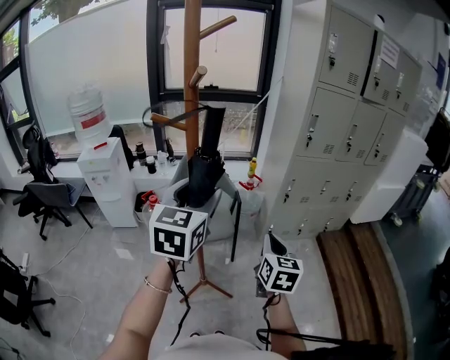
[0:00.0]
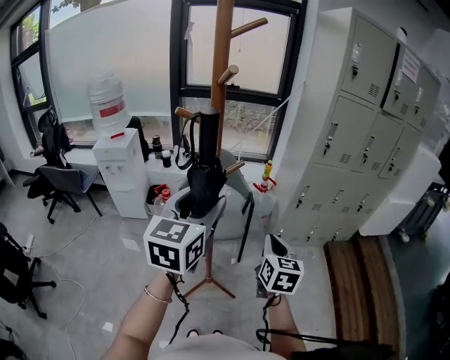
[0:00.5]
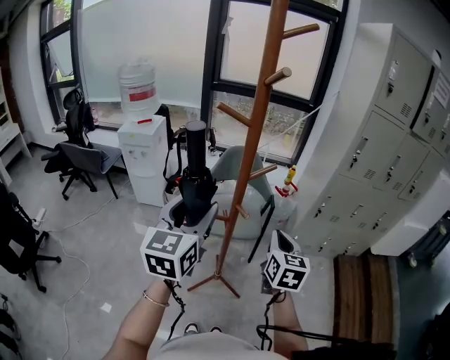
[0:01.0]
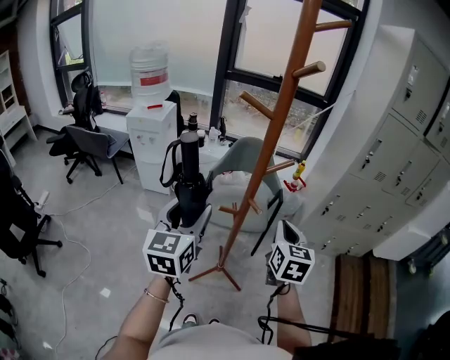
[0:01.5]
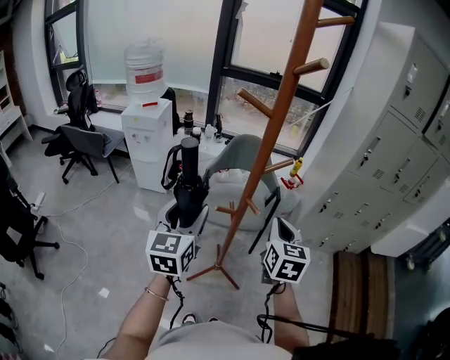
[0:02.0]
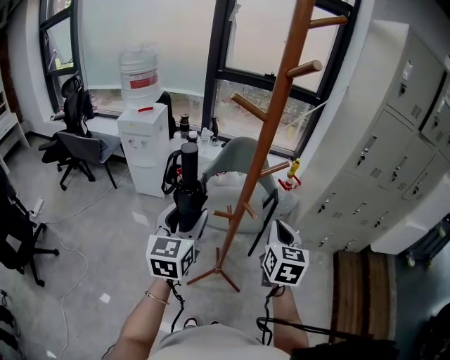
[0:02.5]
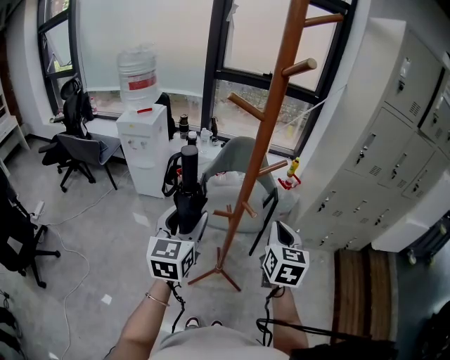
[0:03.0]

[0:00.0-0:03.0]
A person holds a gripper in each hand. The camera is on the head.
0:00.0 to 0:01.5: The left gripper travels to the left and downward by approximately 20 cm, and turns by some 20 degrees; the right gripper heads to the left and forward, covering some 10 cm.
0:01.5 to 0:03.0: The grippers make only small movements.

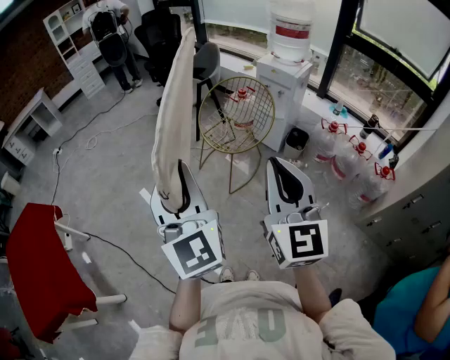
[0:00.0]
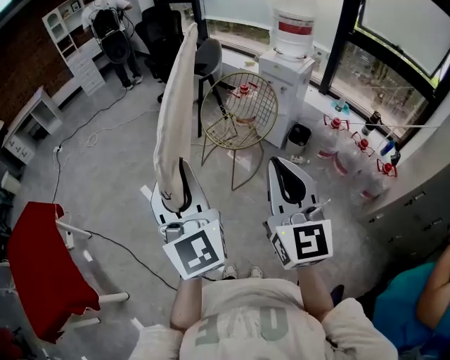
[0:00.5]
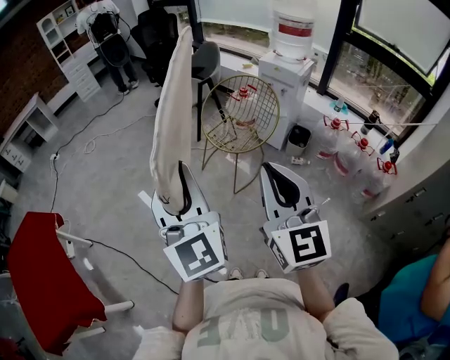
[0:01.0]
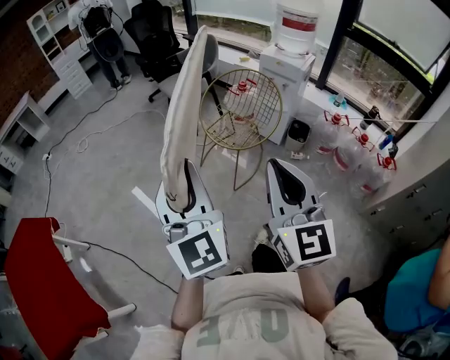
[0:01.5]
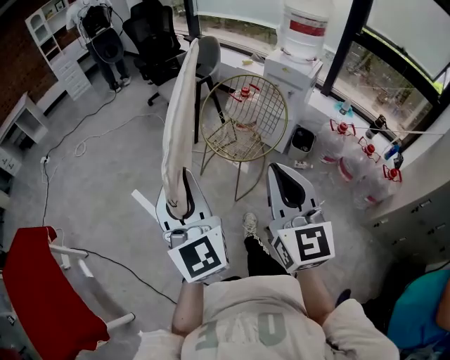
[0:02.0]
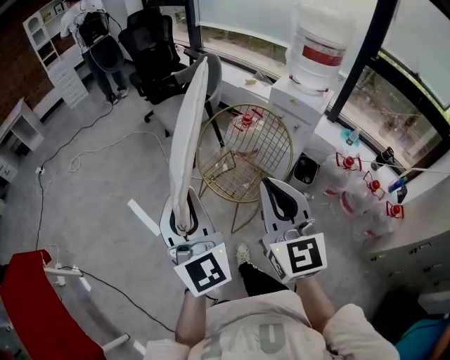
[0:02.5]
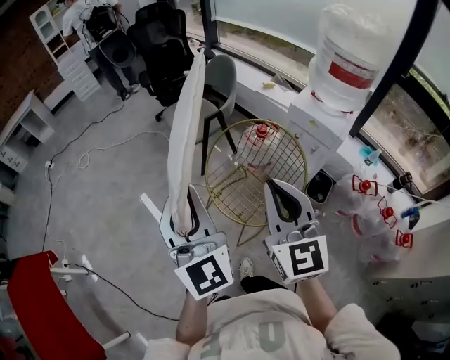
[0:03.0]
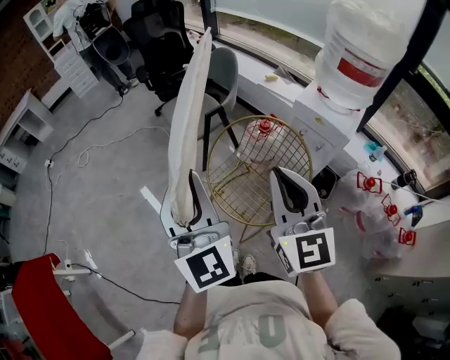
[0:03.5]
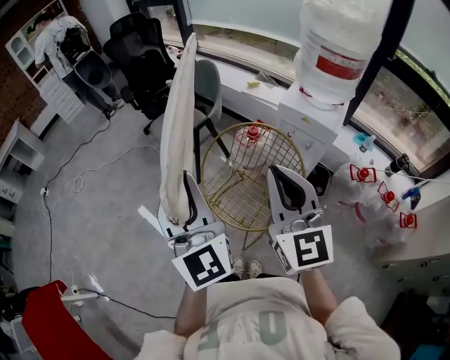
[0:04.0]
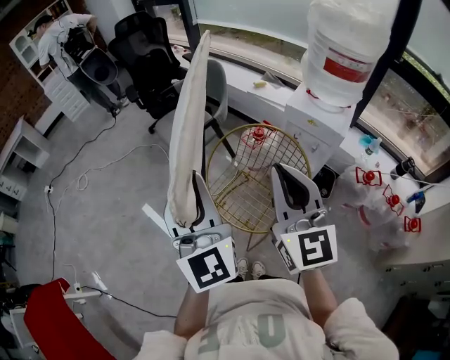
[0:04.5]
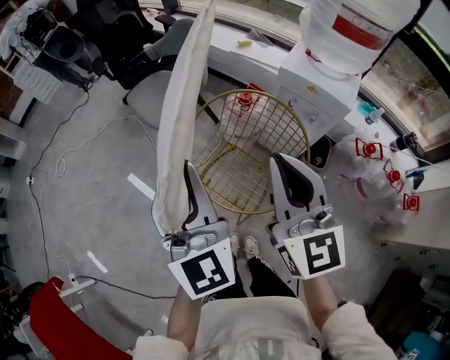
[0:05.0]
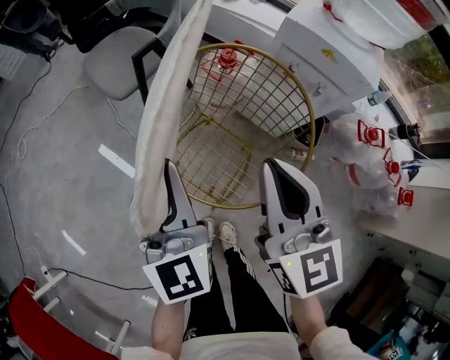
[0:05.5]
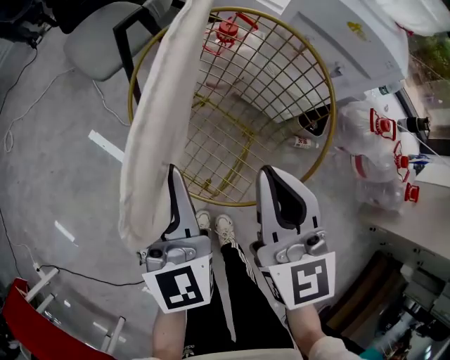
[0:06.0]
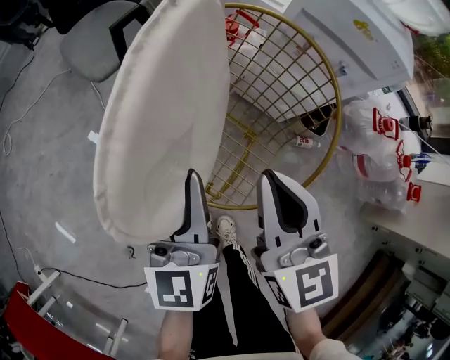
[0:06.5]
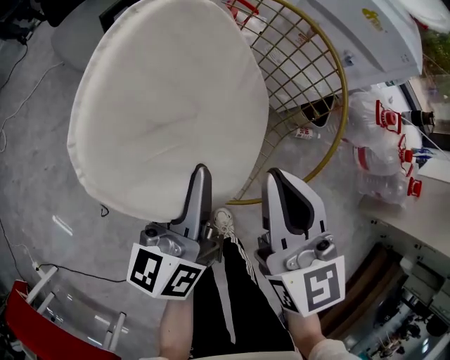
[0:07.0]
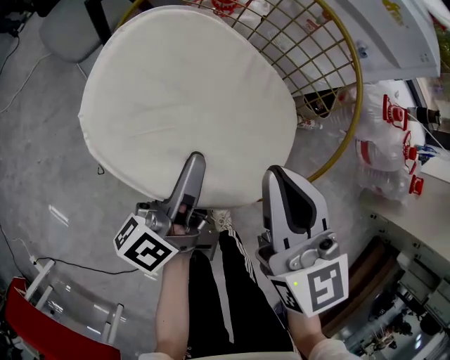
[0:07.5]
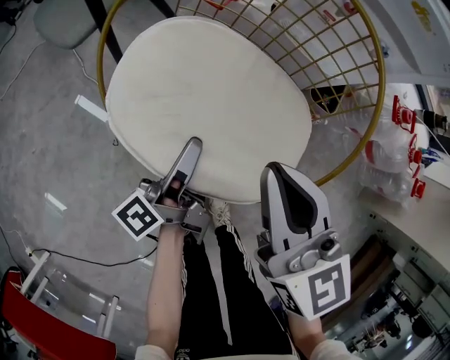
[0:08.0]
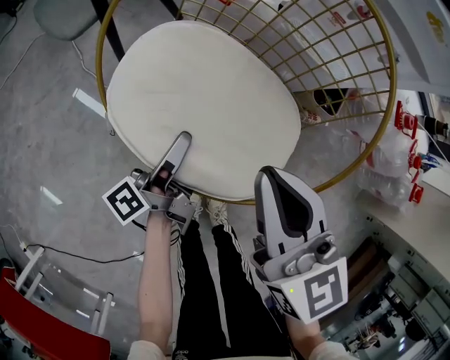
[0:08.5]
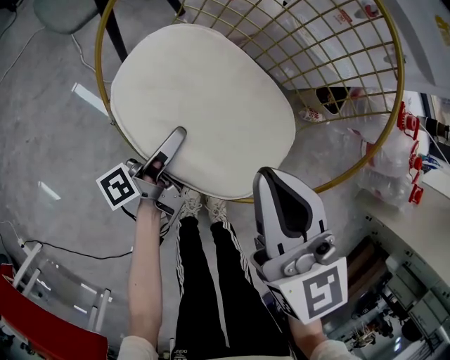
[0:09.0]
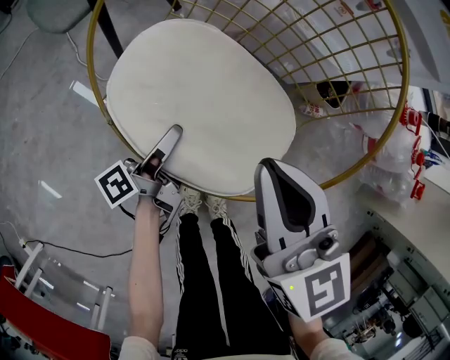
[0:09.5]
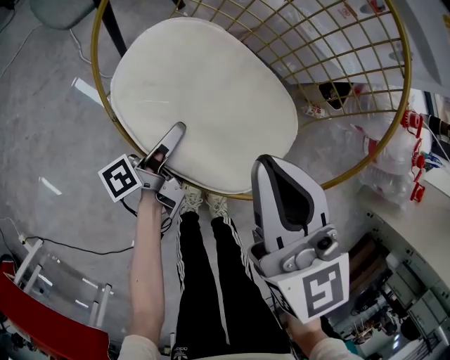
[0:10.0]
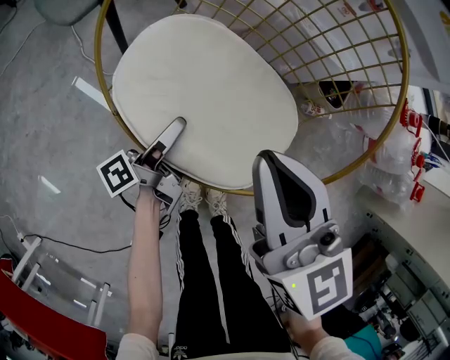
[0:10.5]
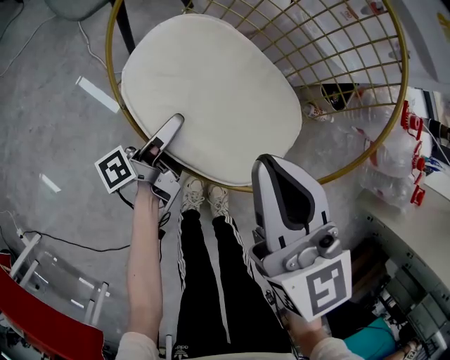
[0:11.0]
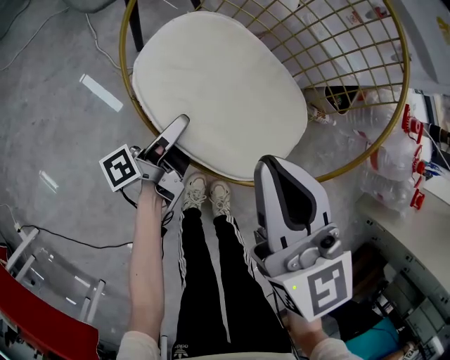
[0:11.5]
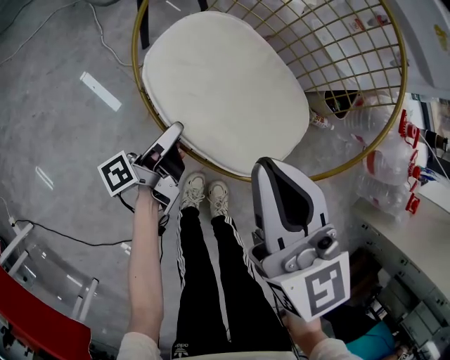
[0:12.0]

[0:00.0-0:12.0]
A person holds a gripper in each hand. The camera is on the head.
0:00.0 to 0:02.0: The right gripper travels forward by some 15 cm. The left gripper heads forward and downward, covering approximately 15 cm.
0:02.0 to 0:04.0: The right gripper goes about 35 cm forward, while the left gripper moves forward and to the right, some 35 cm.
0:04.0 to 0:06.0: The two grippers go about 35 cm downward. The right gripper turns by about 20 degrees. The left gripper swivels roughly 30 degrees.
0:06.0 to 0:08.0: The right gripper travels downward by approximately 10 cm; the left gripper travels downward by roughly 20 cm, and rotates around the line of its fingers by roughly 80 degrees, counterclockwise from behind.
0:08.0 to 0:10.0: The left gripper is displaced downward by roughly 10 cm.
0:10.0 to 0:12.0: The left gripper is displaced backward and to the left by some 10 cm, and opens its fingers. The right gripper is displaced backward by approximately 5 cm.

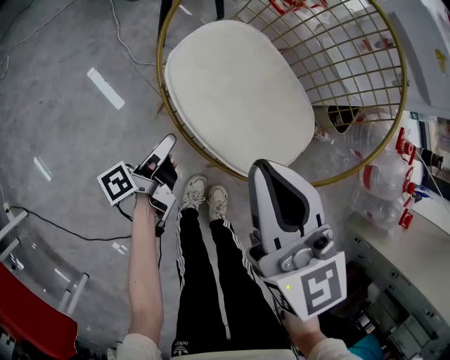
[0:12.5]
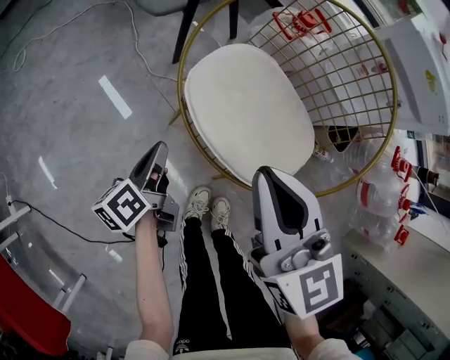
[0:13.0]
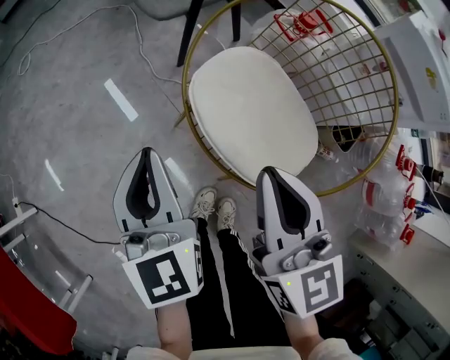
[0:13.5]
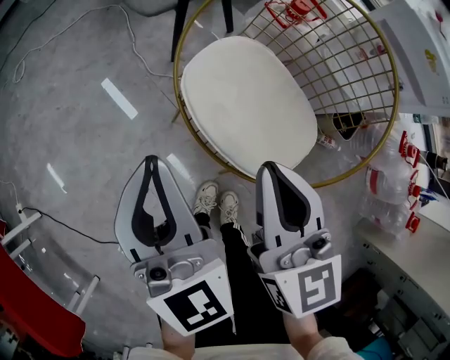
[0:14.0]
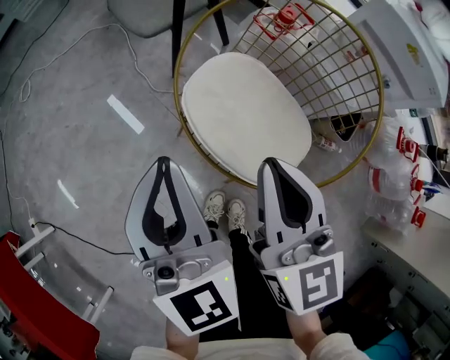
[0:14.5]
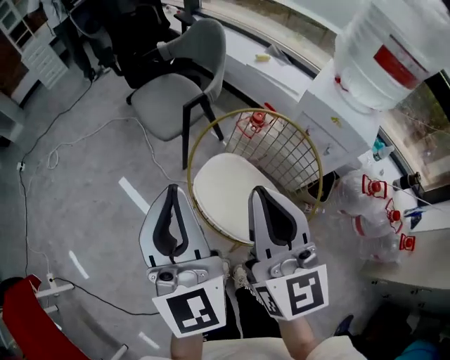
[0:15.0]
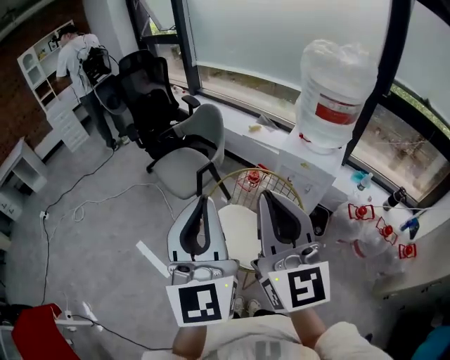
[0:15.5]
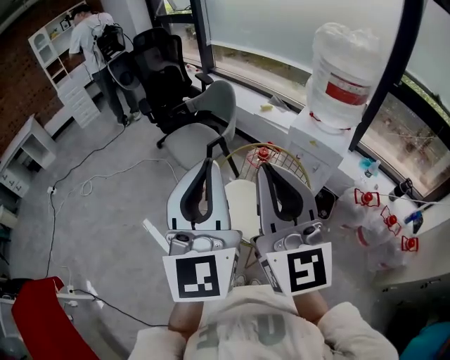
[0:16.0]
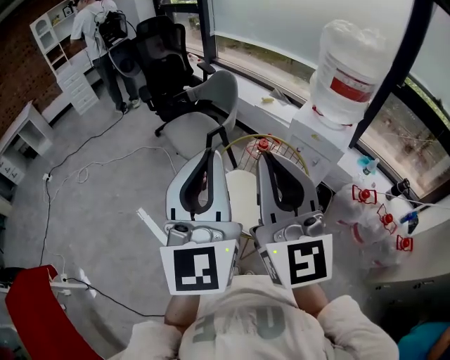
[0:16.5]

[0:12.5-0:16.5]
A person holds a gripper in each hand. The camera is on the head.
0:12.5 to 0:14.5: The right gripper heads upward, covering roughly 5 cm; the left gripper is displaced upward by approximately 35 cm, twists roughly 100 degrees clockwise, seen from behind, and closes its fingers.
0:14.5 to 0:16.5: The grippers both shift upward by approximately 40 cm. The left gripper rotates some 30 degrees. Meanwhile the right gripper tips its fingers upward by some 30 degrees.

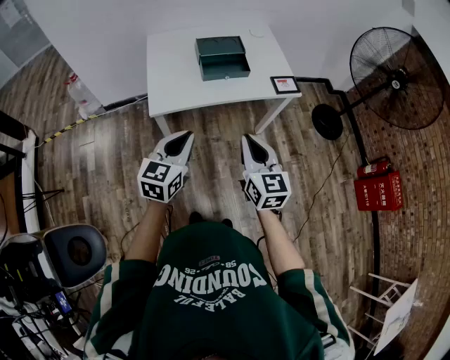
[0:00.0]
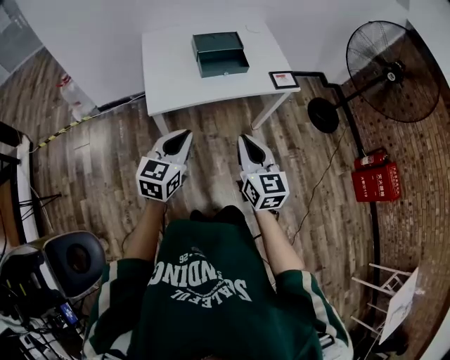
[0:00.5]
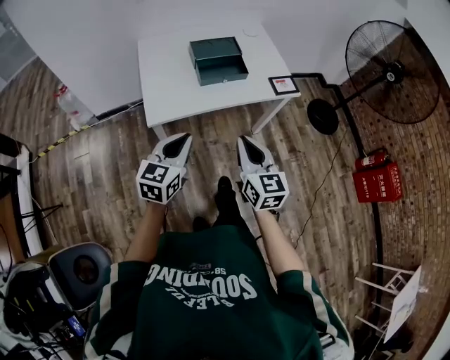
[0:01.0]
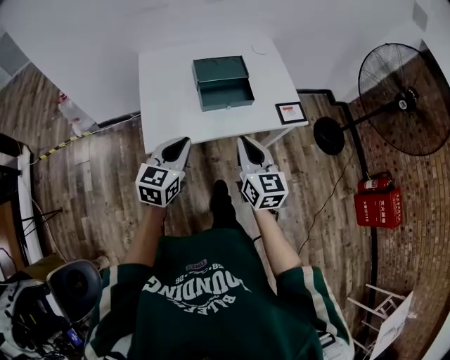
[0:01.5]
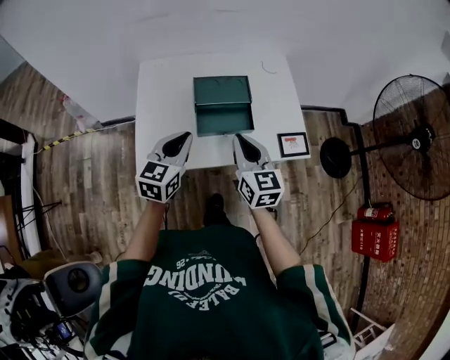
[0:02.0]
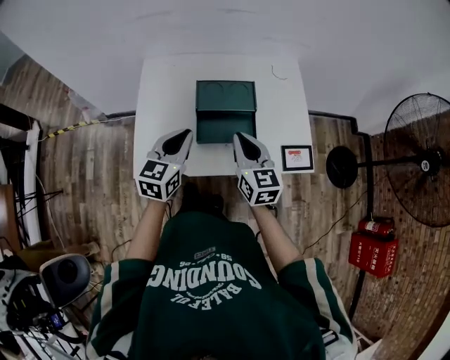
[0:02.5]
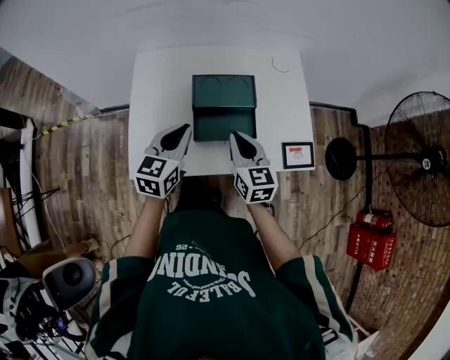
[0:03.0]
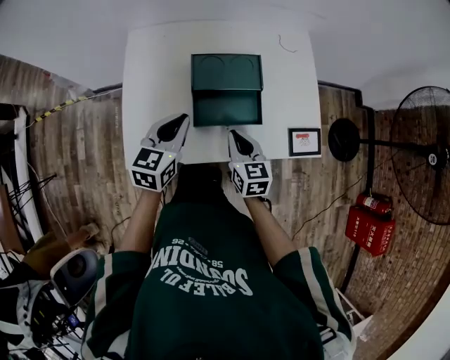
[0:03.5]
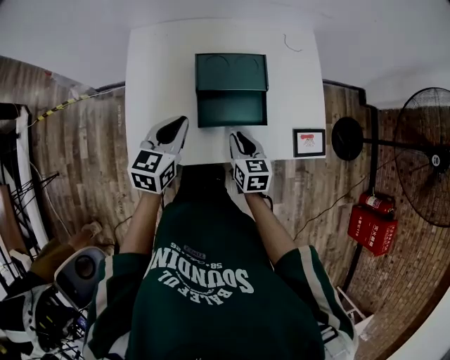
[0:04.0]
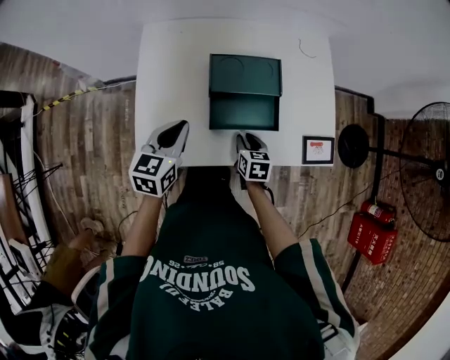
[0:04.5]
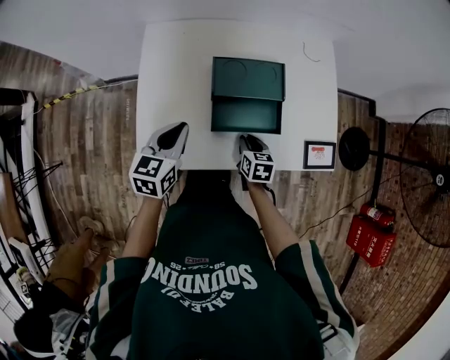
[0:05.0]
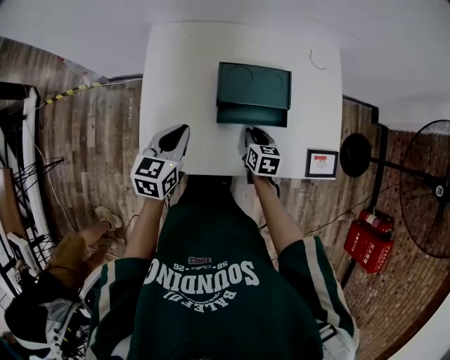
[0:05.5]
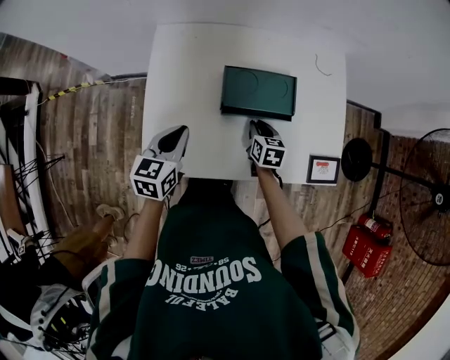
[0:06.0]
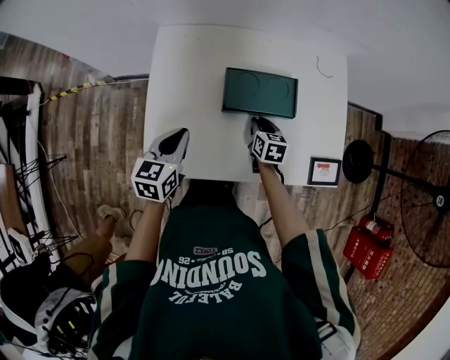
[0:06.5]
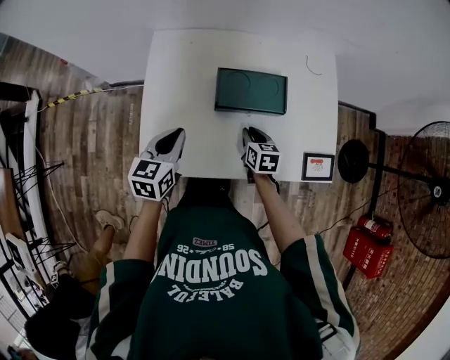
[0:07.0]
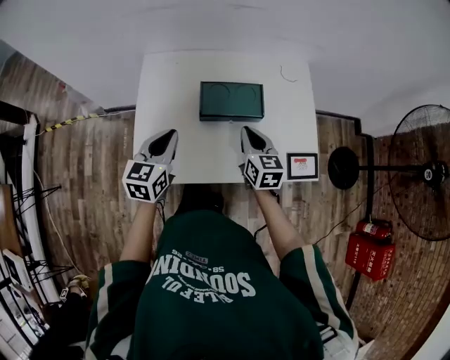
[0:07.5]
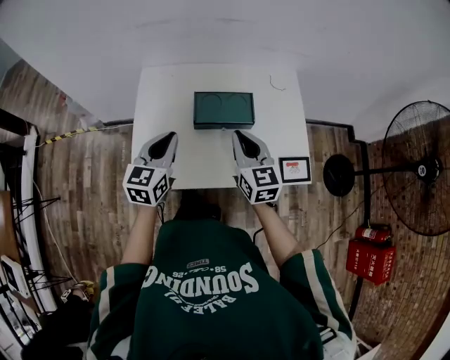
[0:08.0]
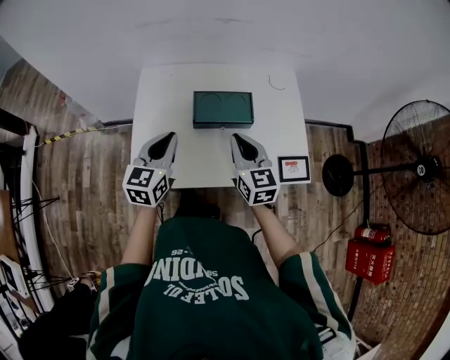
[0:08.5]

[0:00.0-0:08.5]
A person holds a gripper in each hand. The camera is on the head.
0:00.0 to 0:02.0: The two grippers go approximately 30 cm forward.
0:02.0 to 0:04.0: The left gripper heads forward and downward, covering roughly 10 cm, while the right gripper travels downward by some 20 cm, and swivels about 30 degrees.
0:04.0 to 0:06.5: The left gripper goes about 10 cm to the left. The right gripper moves forward and downward, some 15 cm.
0:06.5 to 0:08.5: The left gripper moves upward and to the right, roughly 15 cm. Meanwhile the right gripper heads upward and backward, covering about 25 cm, and tips its fingers upward by about 30 degrees.
